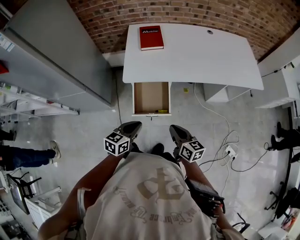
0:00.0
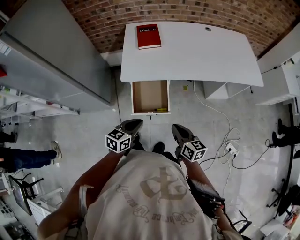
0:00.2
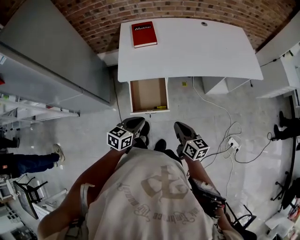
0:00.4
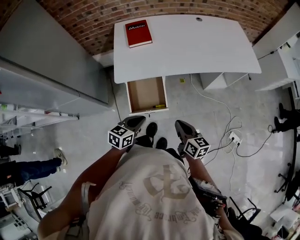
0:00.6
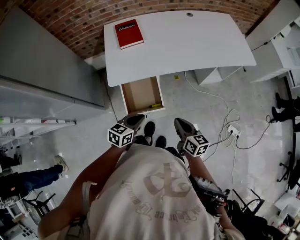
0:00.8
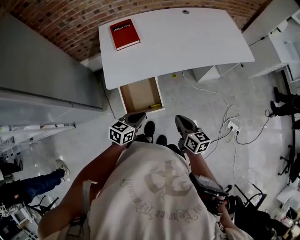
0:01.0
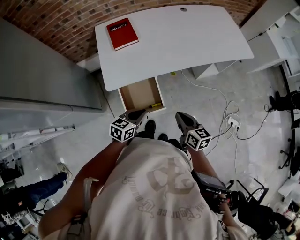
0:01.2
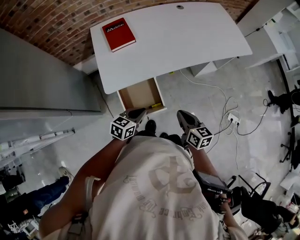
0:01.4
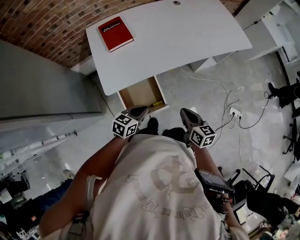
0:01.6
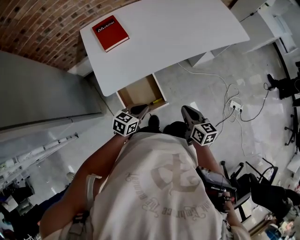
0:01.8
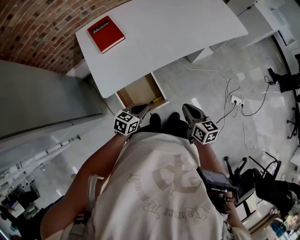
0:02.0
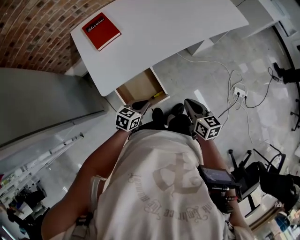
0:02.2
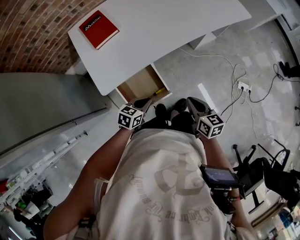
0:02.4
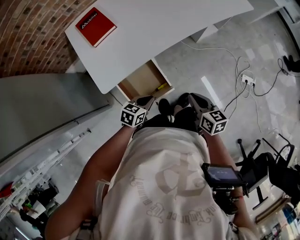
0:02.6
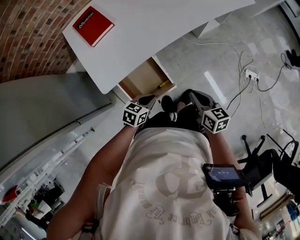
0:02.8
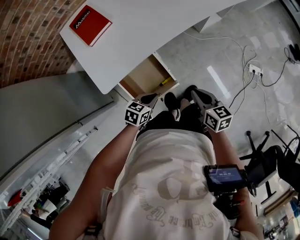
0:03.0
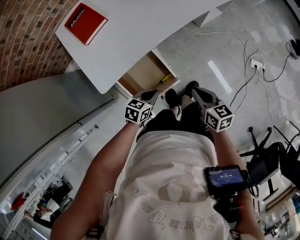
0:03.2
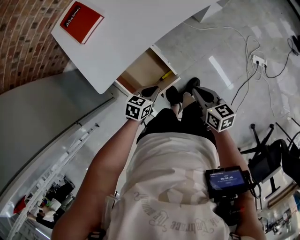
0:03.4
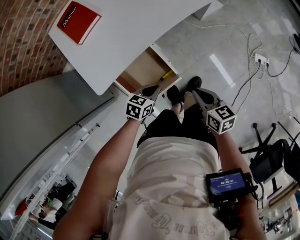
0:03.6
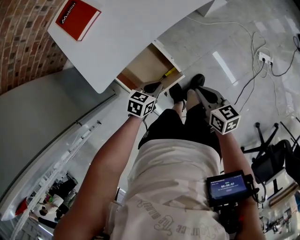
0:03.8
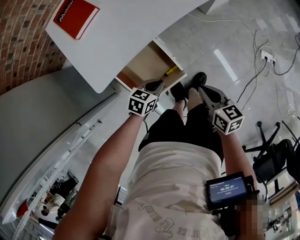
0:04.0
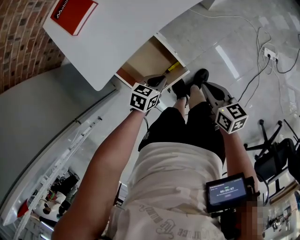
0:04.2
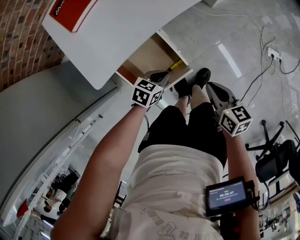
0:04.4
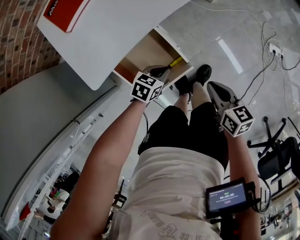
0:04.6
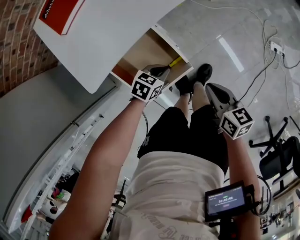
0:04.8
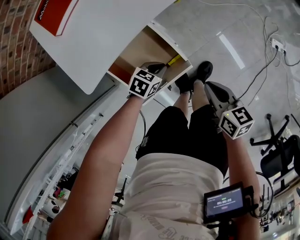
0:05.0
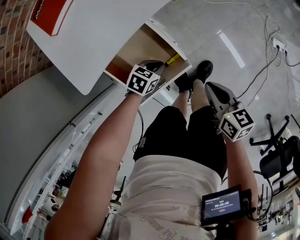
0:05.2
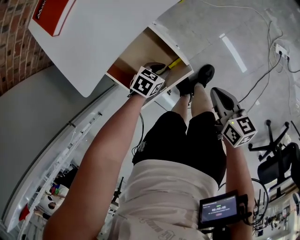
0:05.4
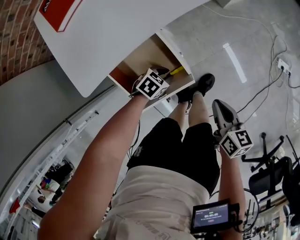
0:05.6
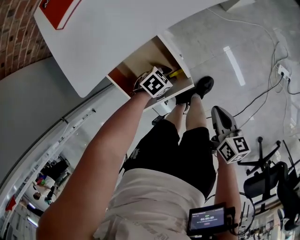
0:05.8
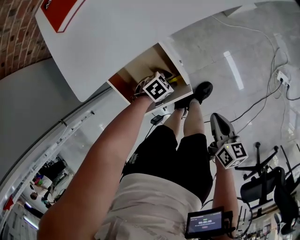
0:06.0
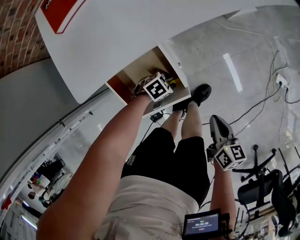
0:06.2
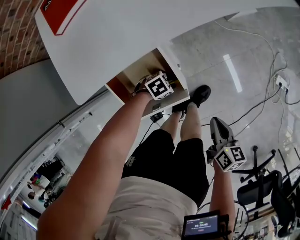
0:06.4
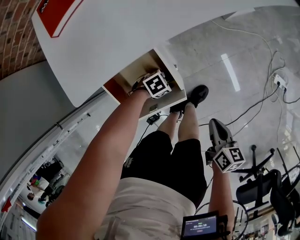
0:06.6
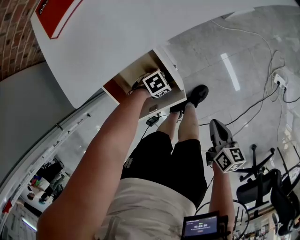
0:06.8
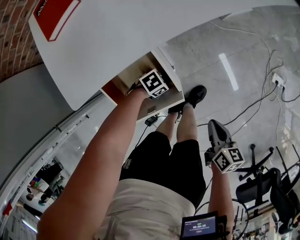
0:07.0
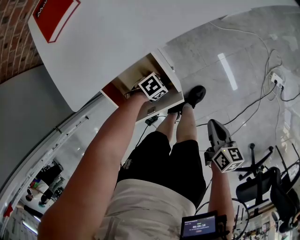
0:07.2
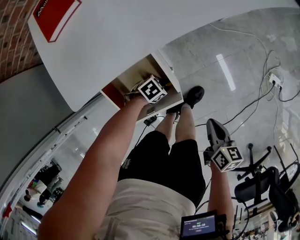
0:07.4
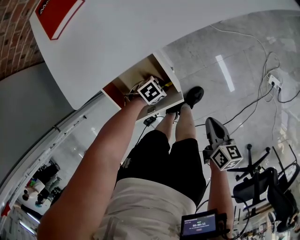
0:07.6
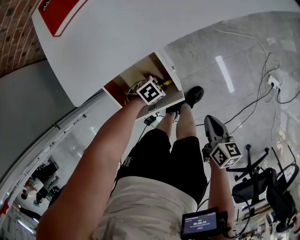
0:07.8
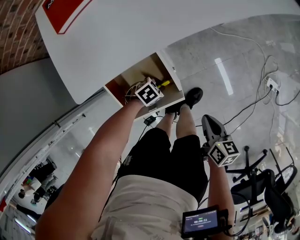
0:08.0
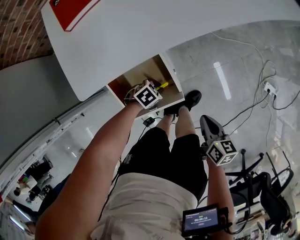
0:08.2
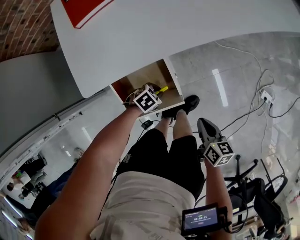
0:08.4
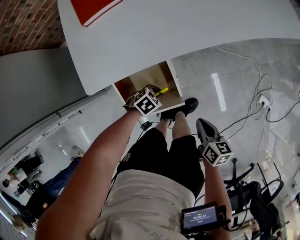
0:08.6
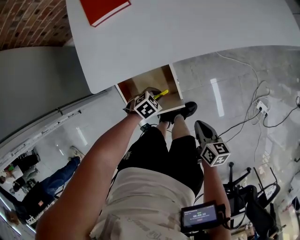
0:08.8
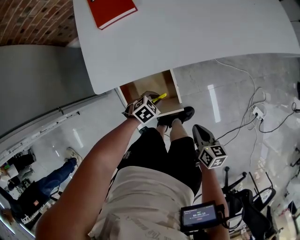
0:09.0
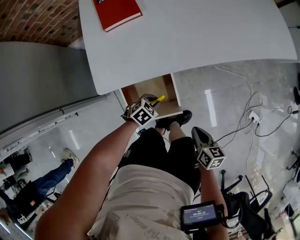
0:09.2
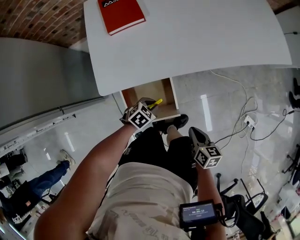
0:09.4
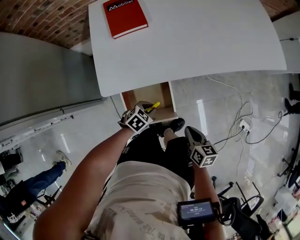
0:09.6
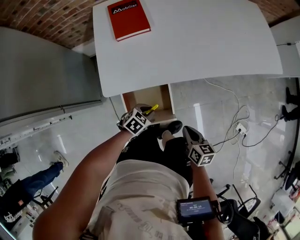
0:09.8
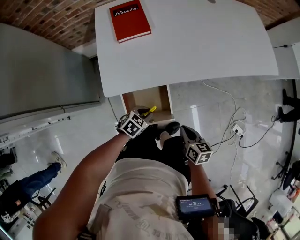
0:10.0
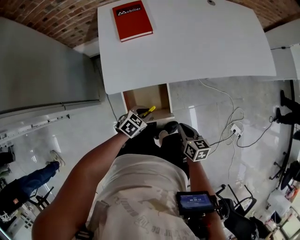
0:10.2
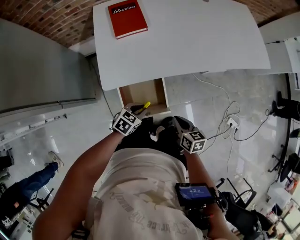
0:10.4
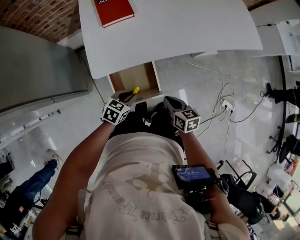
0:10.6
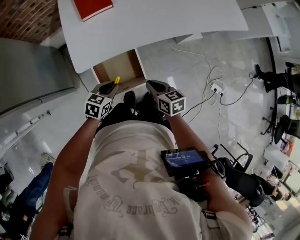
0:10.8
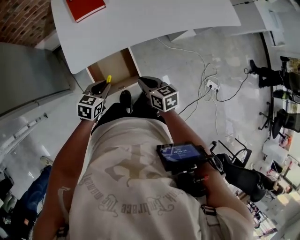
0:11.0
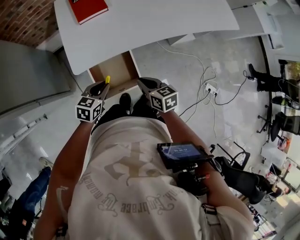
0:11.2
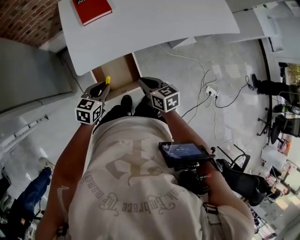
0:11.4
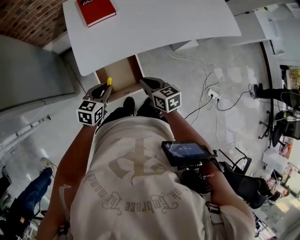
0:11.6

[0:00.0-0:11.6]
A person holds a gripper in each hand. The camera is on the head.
0:00.0 to 0:01.4: The left gripper is displaced forward and downward by some 15 cm, and turns by approximately 20 degrees, while the right gripper shifts roughly 10 cm forward, and turns by roughly 20 degrees.
0:01.4 to 0:02.8: The right gripper moves downward, roughly 10 cm; the left gripper travels downward by about 10 cm, and turns by approximately 20 degrees.
0:02.8 to 0:04.4: The two grippers go approximately 10 cm downward.
0:04.4 to 0:05.8: The left gripper is displaced downward by approximately 15 cm, swivels some 20 degrees, and opens up; the right gripper moves downward, some 10 cm.
0:05.8 to 0:07.2: The grippers stay close to where they were, moving slightly.
0:07.2 to 0:08.8: The right gripper shifts by some 10 cm; the left gripper goes approximately 10 cm upward, and swivels approximately 20 degrees.
0:08.8 to 0:10.2: The right gripper travels upward and to the left by roughly 10 cm. The left gripper is displaced upward by some 15 cm, and changes its angle by some 20 degrees.
0:10.2 to 0:11.6: Both grippers travel together upward and to the left, about 15 cm. The left gripper swivels about 20 degrees.

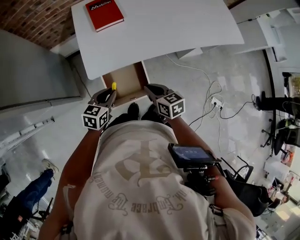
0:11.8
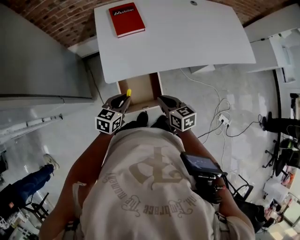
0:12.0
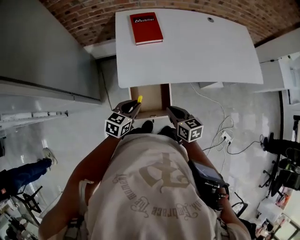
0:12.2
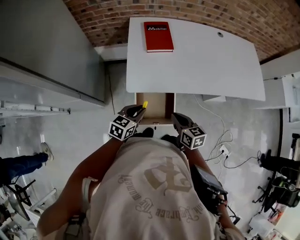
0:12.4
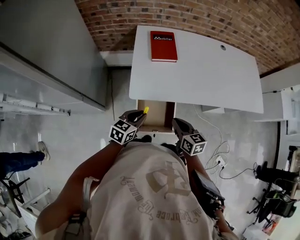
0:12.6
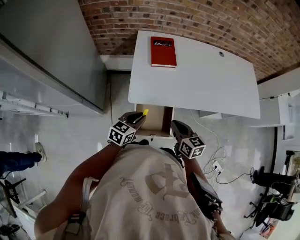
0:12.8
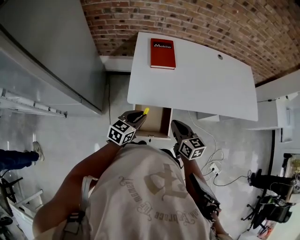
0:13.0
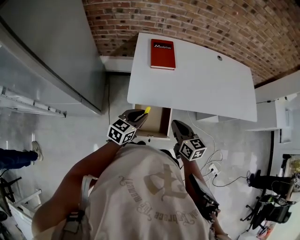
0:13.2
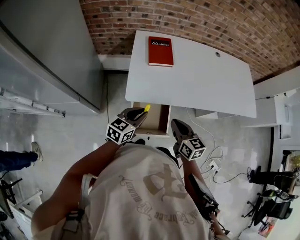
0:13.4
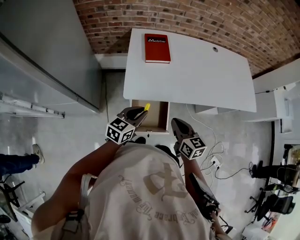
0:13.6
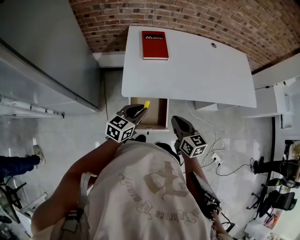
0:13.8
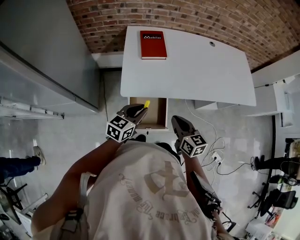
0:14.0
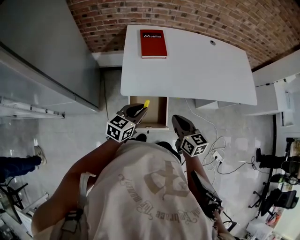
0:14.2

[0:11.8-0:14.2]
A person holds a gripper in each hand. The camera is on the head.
0:11.8 to 0:13.0: The two grippers go about 10 cm upward.
0:13.0 to 0:14.2: The grippers stay close to where they were, moving slightly.

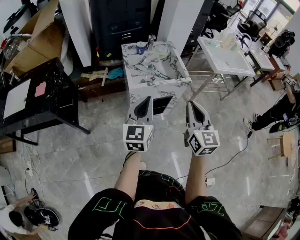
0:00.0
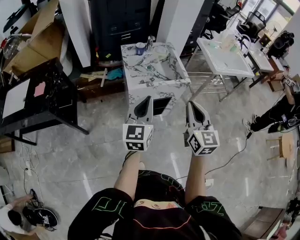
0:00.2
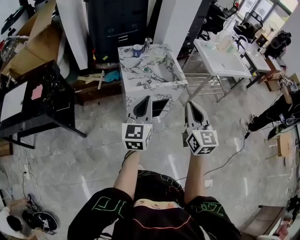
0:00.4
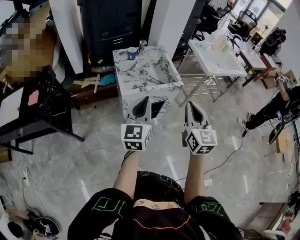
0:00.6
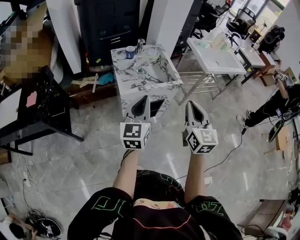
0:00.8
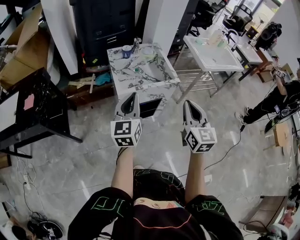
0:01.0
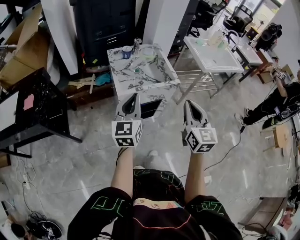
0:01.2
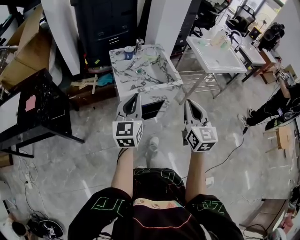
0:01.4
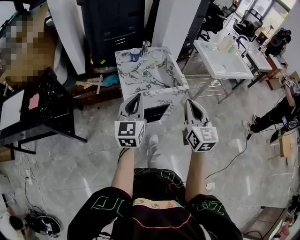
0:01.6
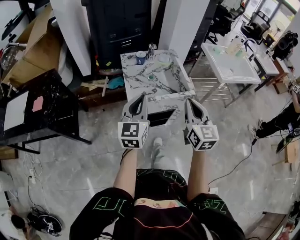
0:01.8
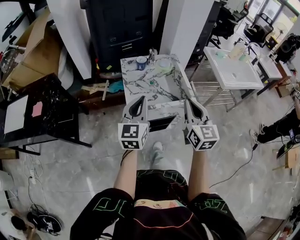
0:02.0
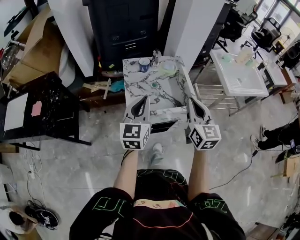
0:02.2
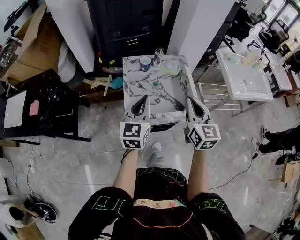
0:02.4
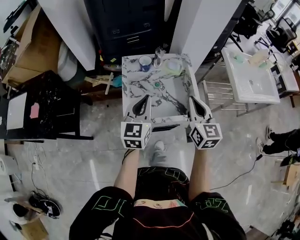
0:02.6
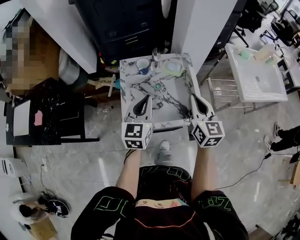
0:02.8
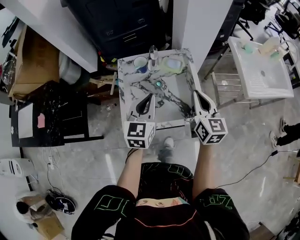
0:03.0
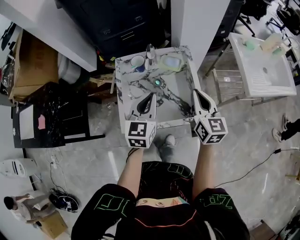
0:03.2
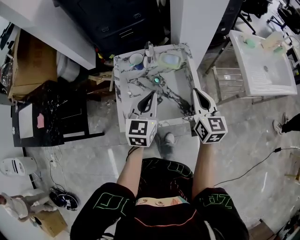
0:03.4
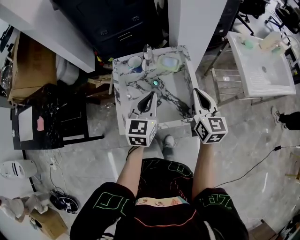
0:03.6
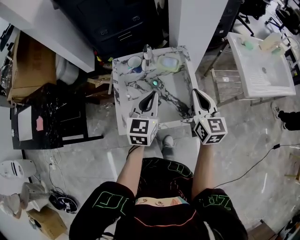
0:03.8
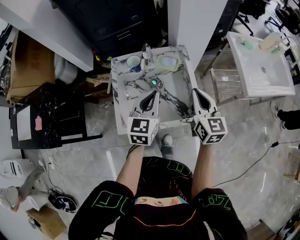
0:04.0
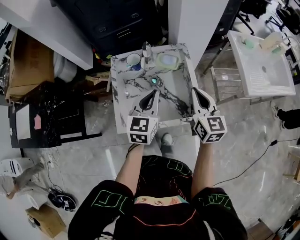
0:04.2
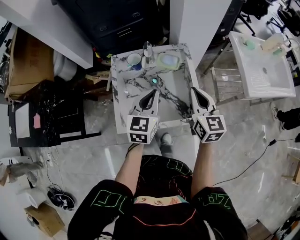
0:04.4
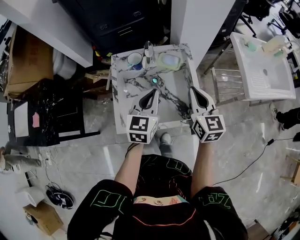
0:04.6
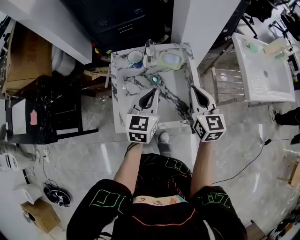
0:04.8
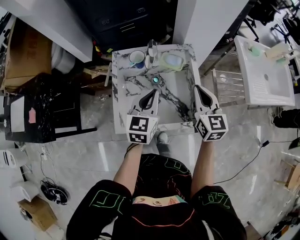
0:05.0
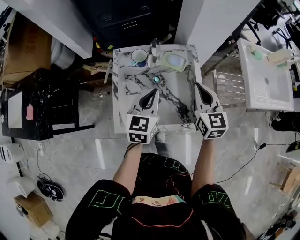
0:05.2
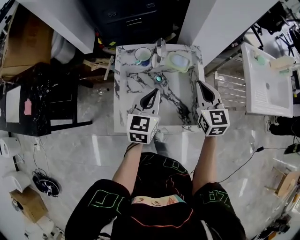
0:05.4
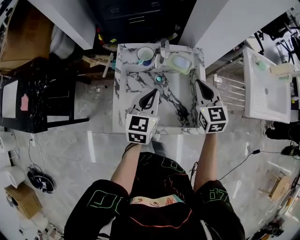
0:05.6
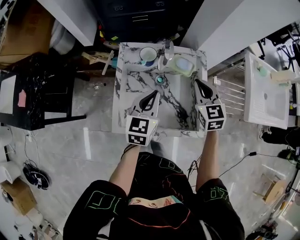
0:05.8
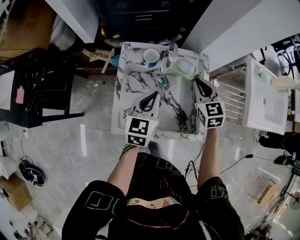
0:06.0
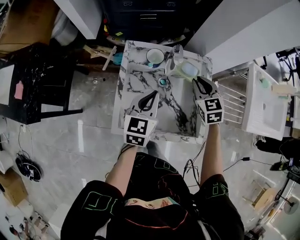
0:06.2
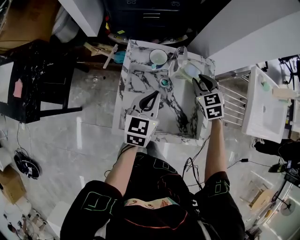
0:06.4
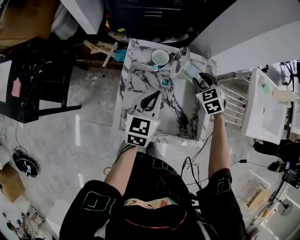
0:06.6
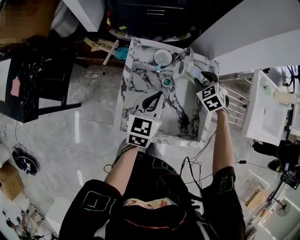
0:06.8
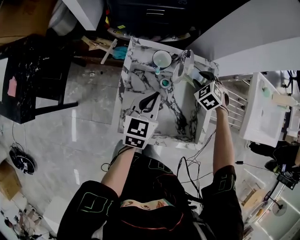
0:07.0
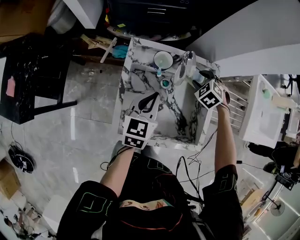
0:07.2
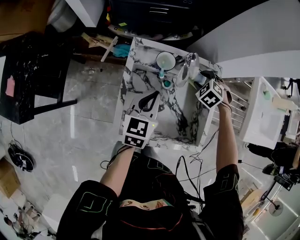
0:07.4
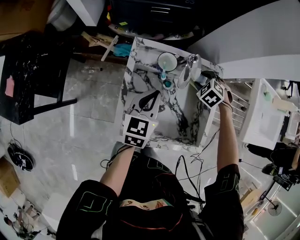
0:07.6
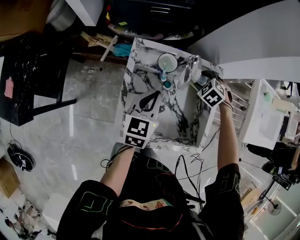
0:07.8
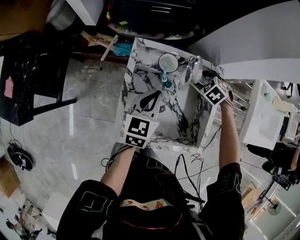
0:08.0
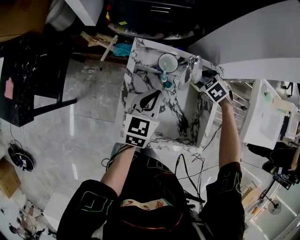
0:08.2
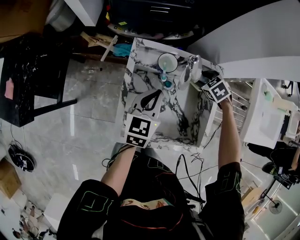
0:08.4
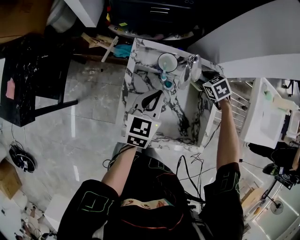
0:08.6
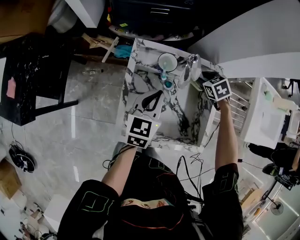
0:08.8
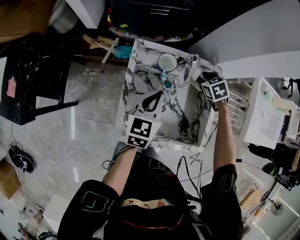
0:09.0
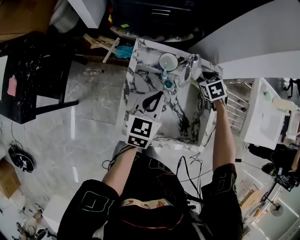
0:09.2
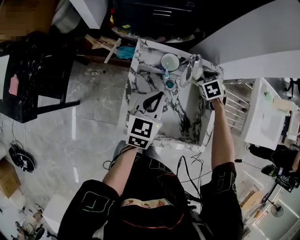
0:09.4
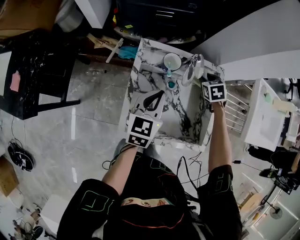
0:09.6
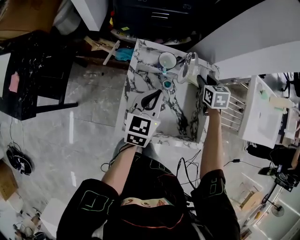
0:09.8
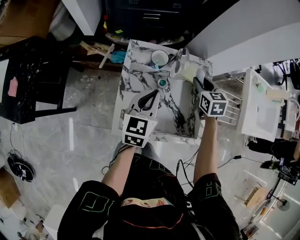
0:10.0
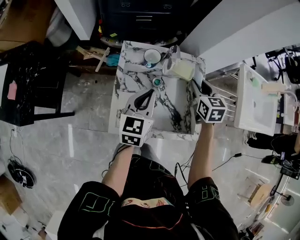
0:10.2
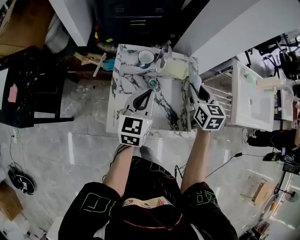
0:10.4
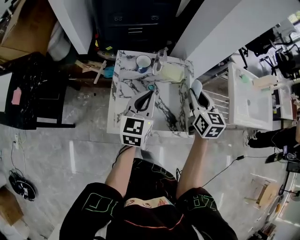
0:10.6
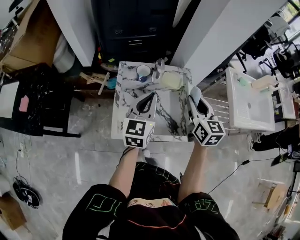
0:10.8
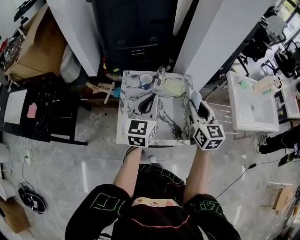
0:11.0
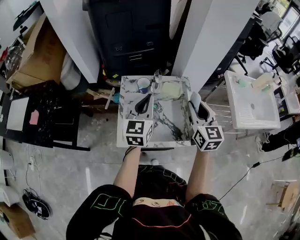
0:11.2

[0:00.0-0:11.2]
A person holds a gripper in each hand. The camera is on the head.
0:00.0 to 0:01.6: Both grippers travel together forward, roughly 10 cm.
0:01.6 to 0:03.2: Both grippers travel together forward, some 30 cm.
0:03.2 to 0:04.8: The grippers move only a little.
0:04.8 to 0:06.4: The right gripper heads forward and downward, covering some 20 cm, turns by approximately 50 degrees, and opens its fingers, while the left gripper goes about 5 cm to the left.
0:06.4 to 0:08.0: The left gripper shifts by approximately 5 cm; the right gripper travels downward by some 10 cm, points its fingers roughly 30 degrees further downward, and opens its fingers.
0:08.0 to 0:09.6: The right gripper swivels some 40 degrees, and closes up.
0:09.6 to 0:11.2: The left gripper is displaced upward by approximately 15 cm. Meanwhile the right gripper heads upward and backward, covering about 35 cm, and tips its fingers upward by about 50 degrees.
